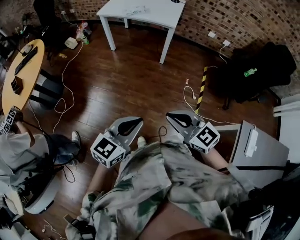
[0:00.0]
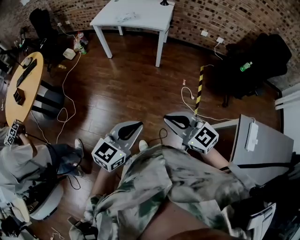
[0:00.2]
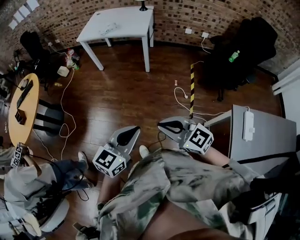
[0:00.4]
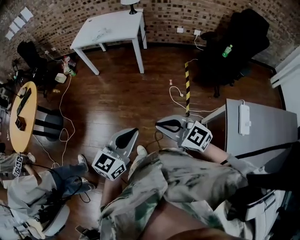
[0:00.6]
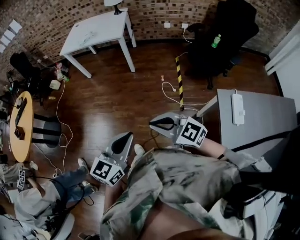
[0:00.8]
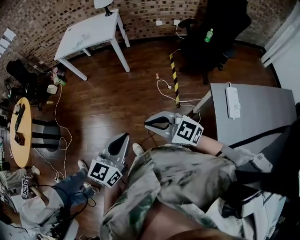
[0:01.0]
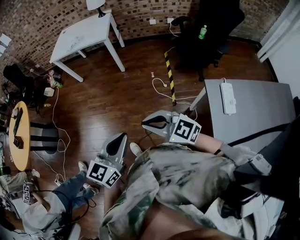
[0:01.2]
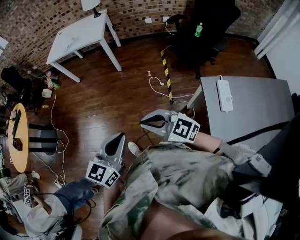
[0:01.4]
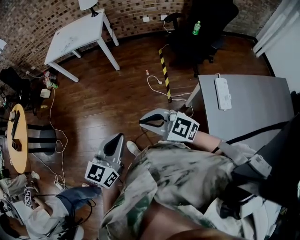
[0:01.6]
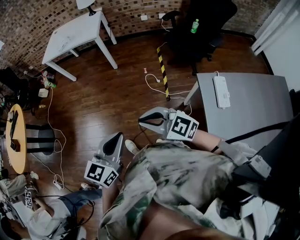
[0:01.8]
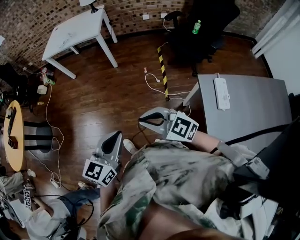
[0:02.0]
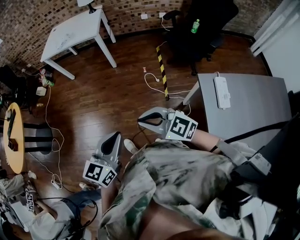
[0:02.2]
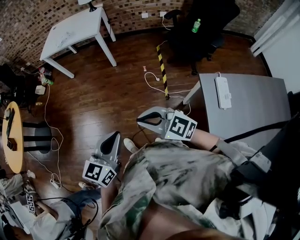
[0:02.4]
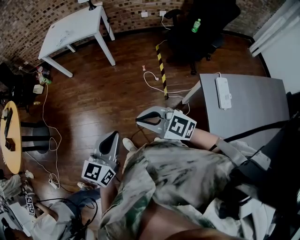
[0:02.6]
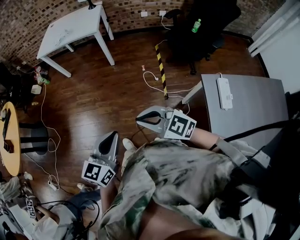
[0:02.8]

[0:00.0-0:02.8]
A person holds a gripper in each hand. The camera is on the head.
0:00.0 to 0:01.4: The two grippers go about 25 cm to the right and backward.
0:01.4 to 0:02.8: The right gripper moves some 5 cm. The left gripper moves to the left, about 5 cm.

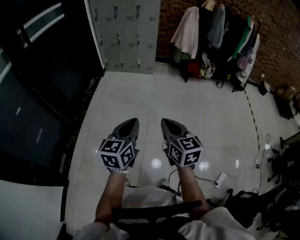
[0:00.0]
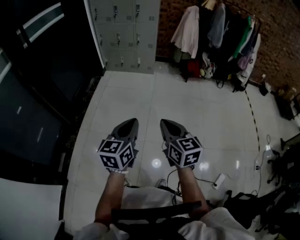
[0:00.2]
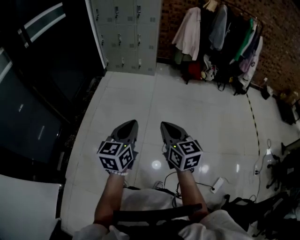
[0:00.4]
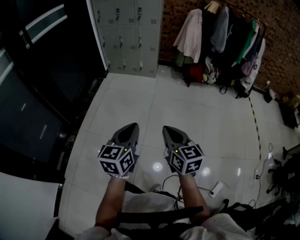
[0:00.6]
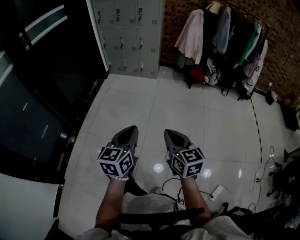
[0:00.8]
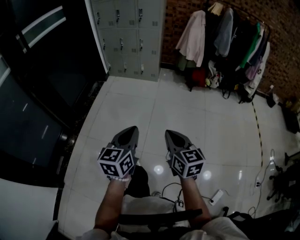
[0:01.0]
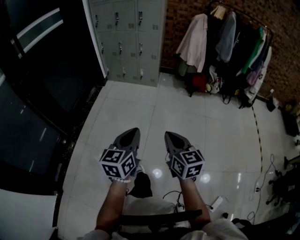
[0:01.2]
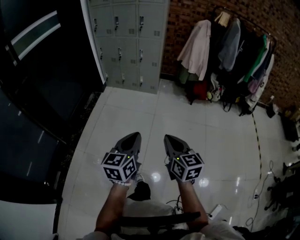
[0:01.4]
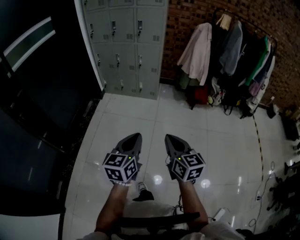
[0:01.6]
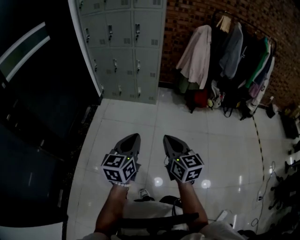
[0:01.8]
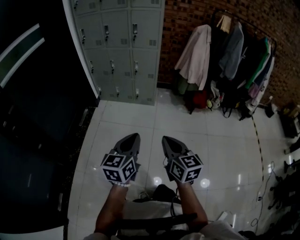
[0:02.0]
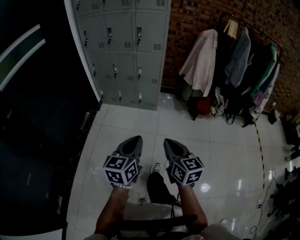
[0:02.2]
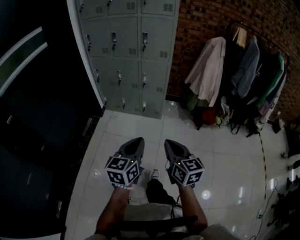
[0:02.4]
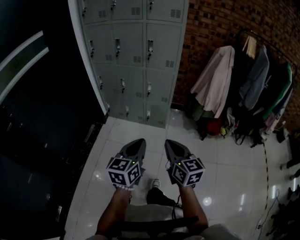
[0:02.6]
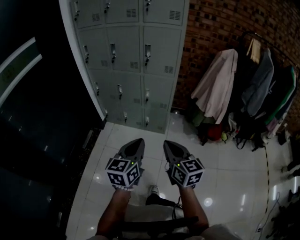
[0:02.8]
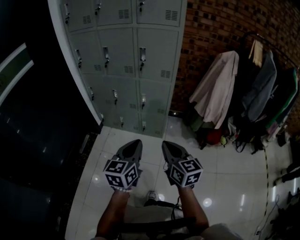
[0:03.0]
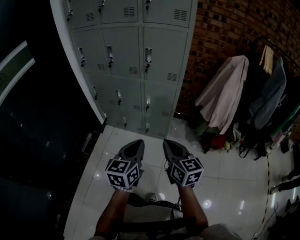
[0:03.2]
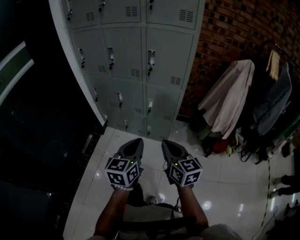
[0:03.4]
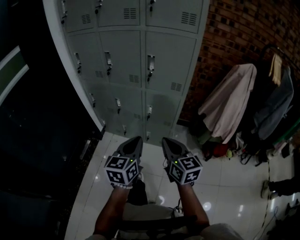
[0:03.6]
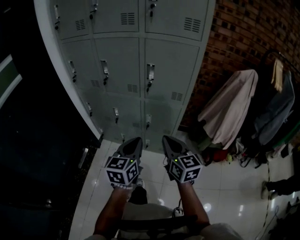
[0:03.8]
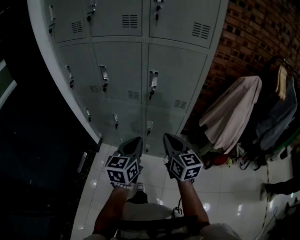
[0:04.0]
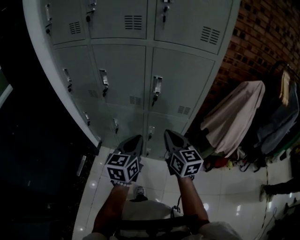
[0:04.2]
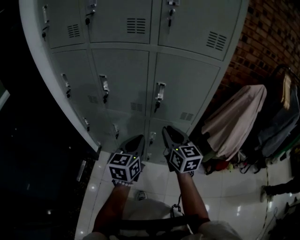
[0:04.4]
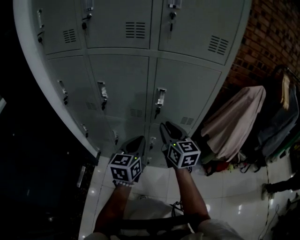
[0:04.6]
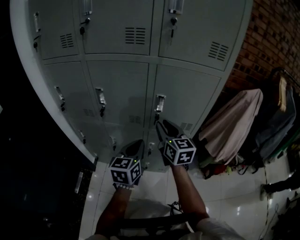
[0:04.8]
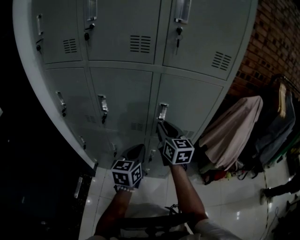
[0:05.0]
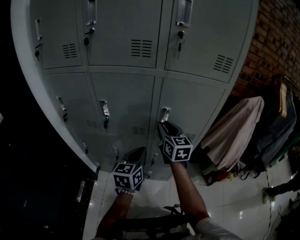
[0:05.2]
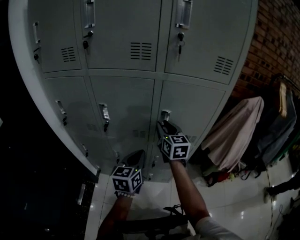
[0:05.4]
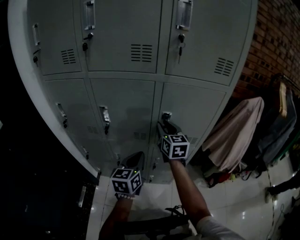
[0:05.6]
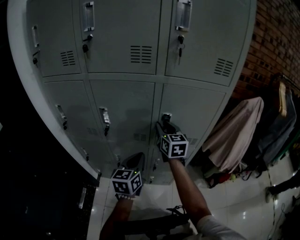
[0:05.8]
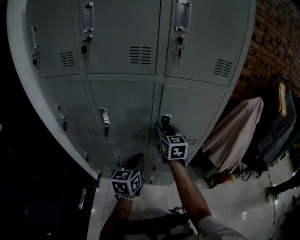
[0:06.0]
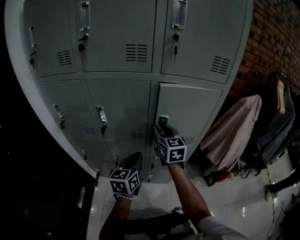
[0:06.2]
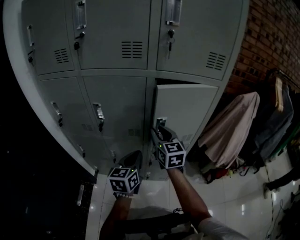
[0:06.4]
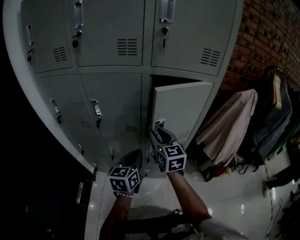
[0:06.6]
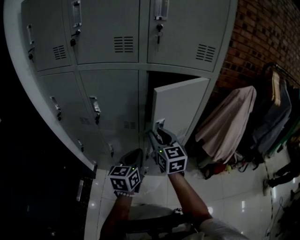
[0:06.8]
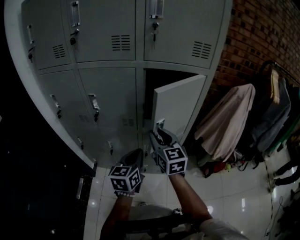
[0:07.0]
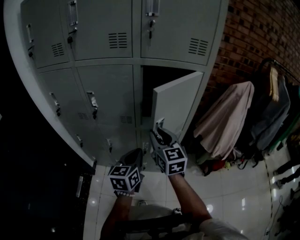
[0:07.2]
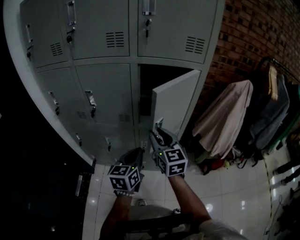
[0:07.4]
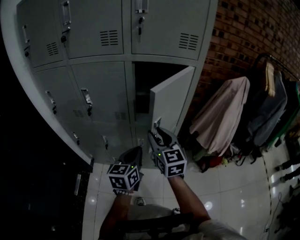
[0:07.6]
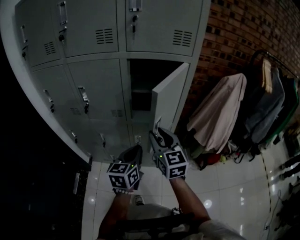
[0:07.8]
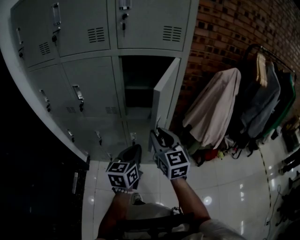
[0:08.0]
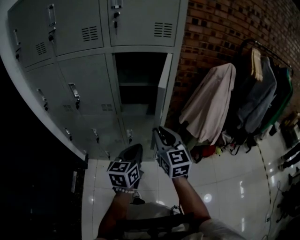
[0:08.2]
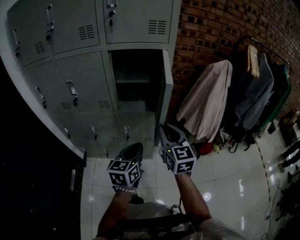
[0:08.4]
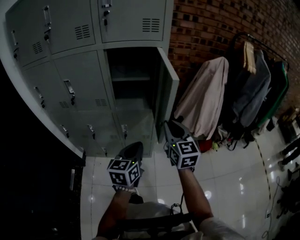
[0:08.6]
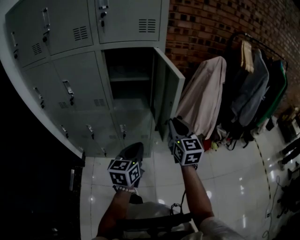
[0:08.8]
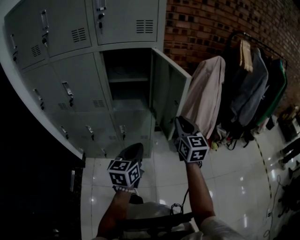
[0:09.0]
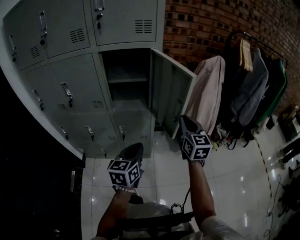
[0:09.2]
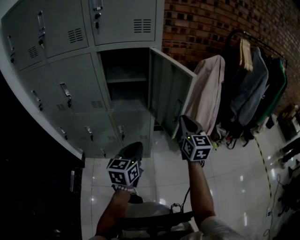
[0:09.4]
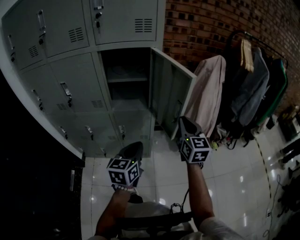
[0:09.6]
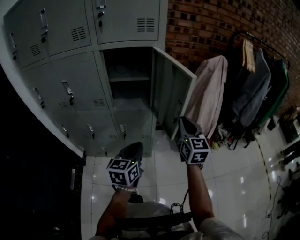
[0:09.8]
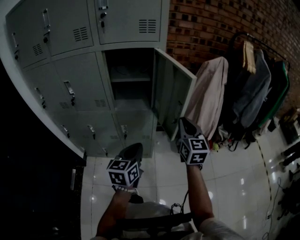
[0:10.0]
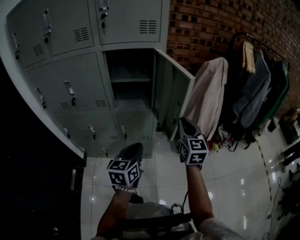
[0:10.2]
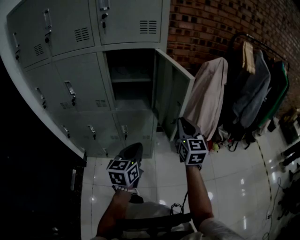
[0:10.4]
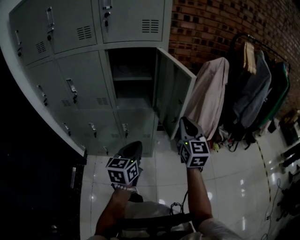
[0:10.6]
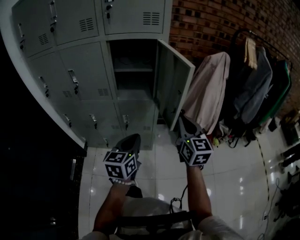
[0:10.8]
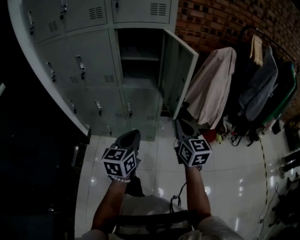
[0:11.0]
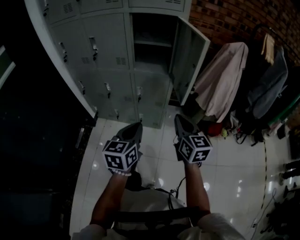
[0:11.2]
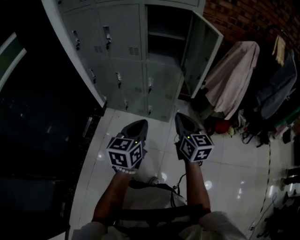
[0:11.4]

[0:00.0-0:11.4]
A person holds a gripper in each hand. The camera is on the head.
0:00.0 to 0:01.4: The two grippers go approximately 25 cm forward.
0:01.4 to 0:02.8: The two grippers travel together, forward, some 50 cm.
0:02.8 to 0:04.2: Both grippers are carried forward, about 40 cm.
0:04.2 to 0:05.6: The right gripper moves forward, approximately 20 cm, and opens; the left gripper heads forward and to the left, covering roughly 15 cm.
0:05.6 to 0:07.2: The right gripper travels backward by approximately 15 cm. The left gripper is displaced backward and to the right by approximately 10 cm.
0:07.2 to 0:08.6: The grippers both shift to the right and backward by some 20 cm.
0:08.6 to 0:10.0: The right gripper goes roughly 10 cm to the right.
0:10.0 to 0:11.4: The left gripper goes roughly 20 cm backward, while the right gripper is displaced backward and to the left by approximately 20 cm, and changes its angle by some 30 degrees.

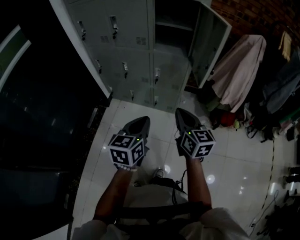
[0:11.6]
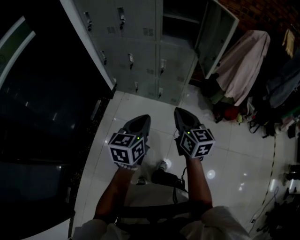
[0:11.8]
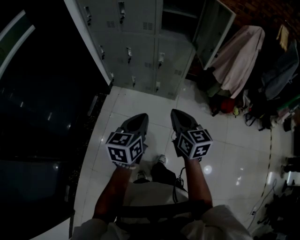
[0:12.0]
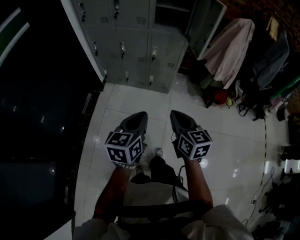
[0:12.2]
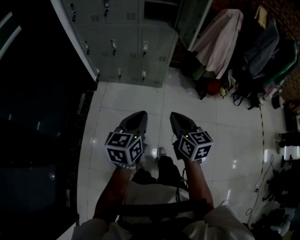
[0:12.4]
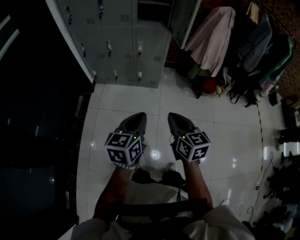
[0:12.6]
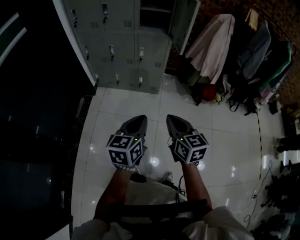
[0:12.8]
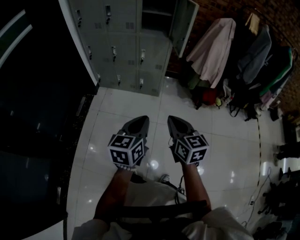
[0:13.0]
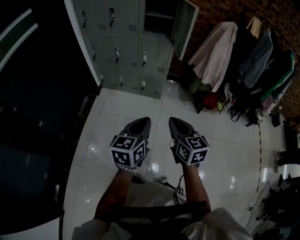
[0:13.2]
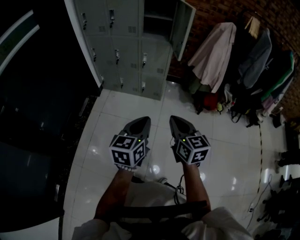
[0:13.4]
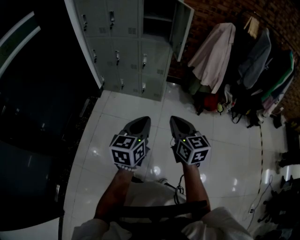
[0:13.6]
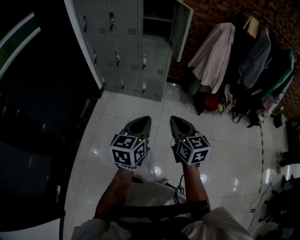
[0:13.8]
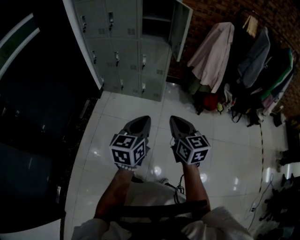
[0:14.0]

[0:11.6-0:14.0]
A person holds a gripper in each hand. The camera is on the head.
0:11.6 to 0:12.8: Both grippers travel together backward, approximately 25 cm.
0:12.8 to 0:14.0: The two grippers go about 5 cm to the right.

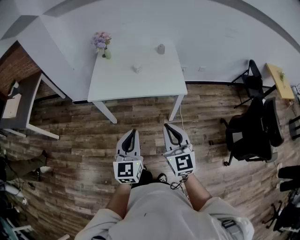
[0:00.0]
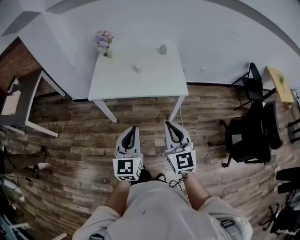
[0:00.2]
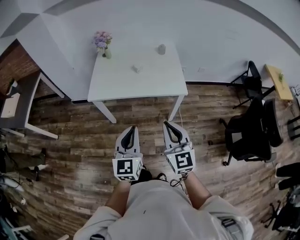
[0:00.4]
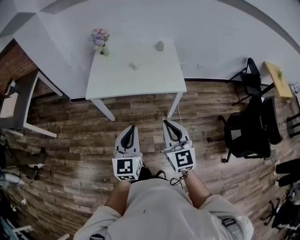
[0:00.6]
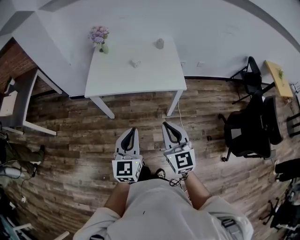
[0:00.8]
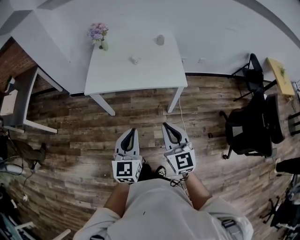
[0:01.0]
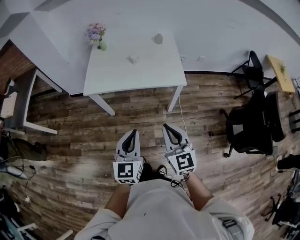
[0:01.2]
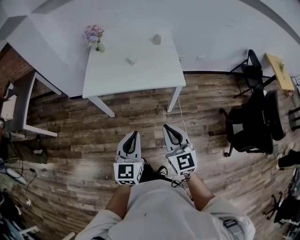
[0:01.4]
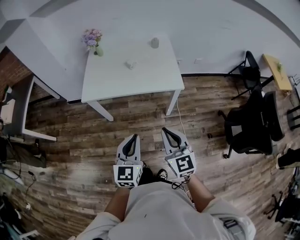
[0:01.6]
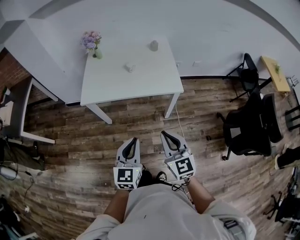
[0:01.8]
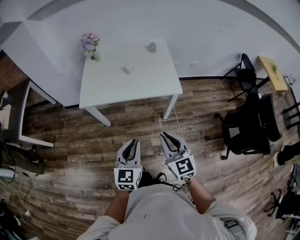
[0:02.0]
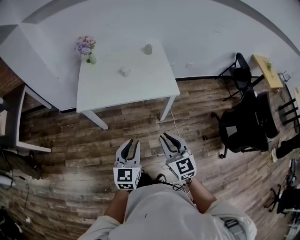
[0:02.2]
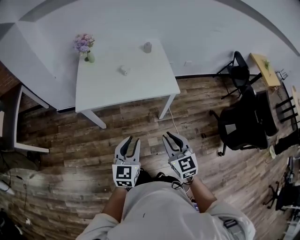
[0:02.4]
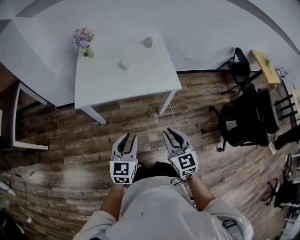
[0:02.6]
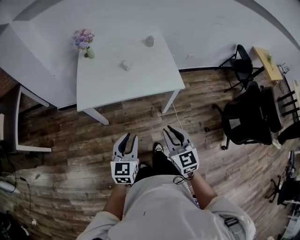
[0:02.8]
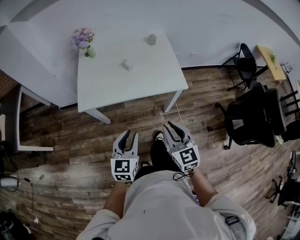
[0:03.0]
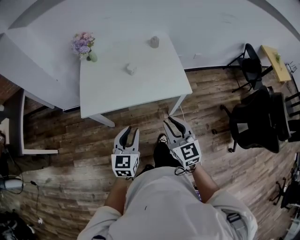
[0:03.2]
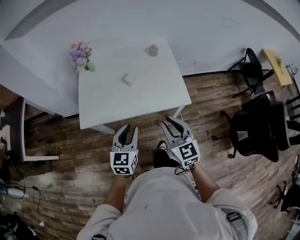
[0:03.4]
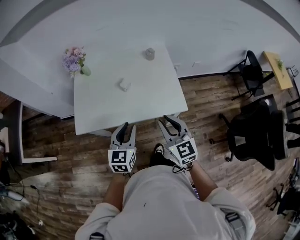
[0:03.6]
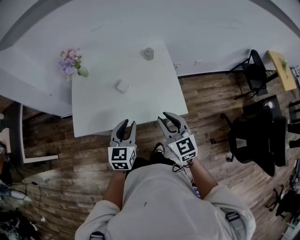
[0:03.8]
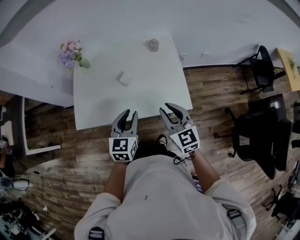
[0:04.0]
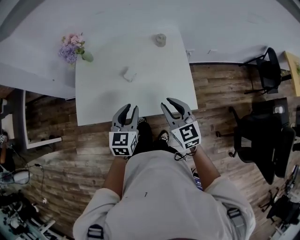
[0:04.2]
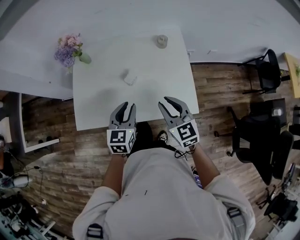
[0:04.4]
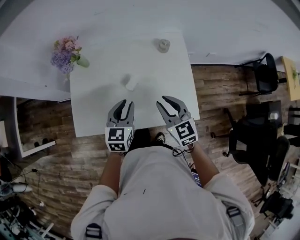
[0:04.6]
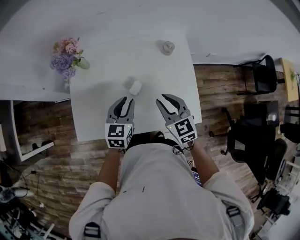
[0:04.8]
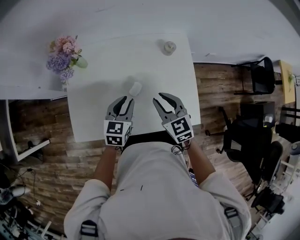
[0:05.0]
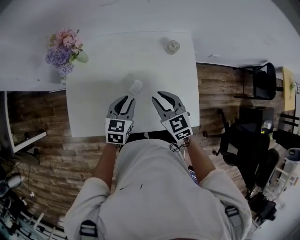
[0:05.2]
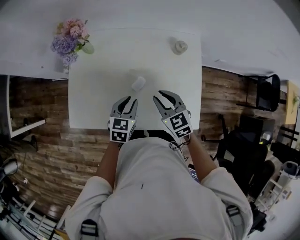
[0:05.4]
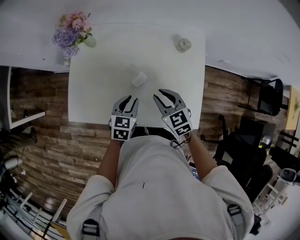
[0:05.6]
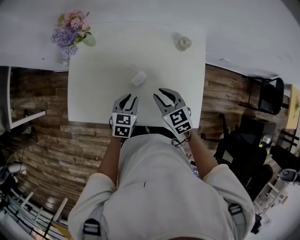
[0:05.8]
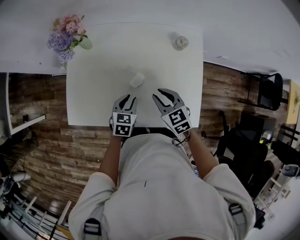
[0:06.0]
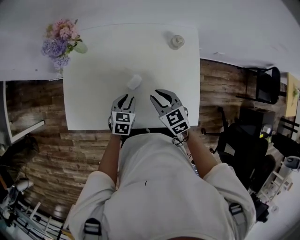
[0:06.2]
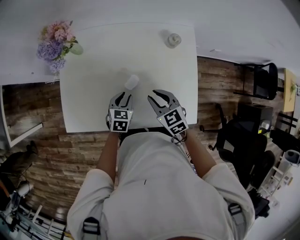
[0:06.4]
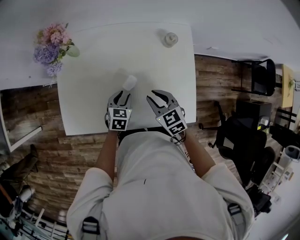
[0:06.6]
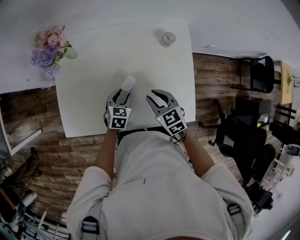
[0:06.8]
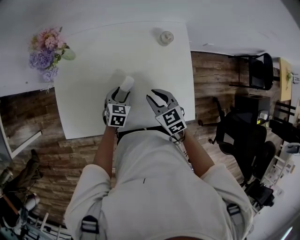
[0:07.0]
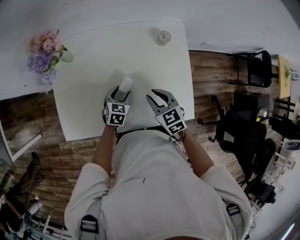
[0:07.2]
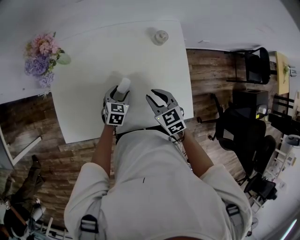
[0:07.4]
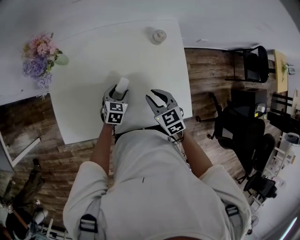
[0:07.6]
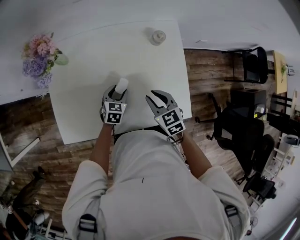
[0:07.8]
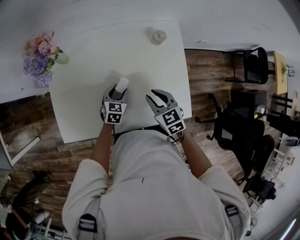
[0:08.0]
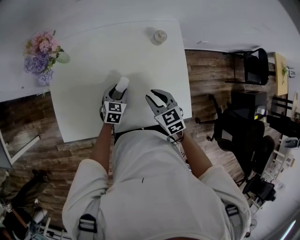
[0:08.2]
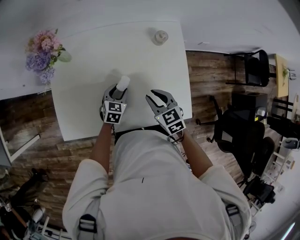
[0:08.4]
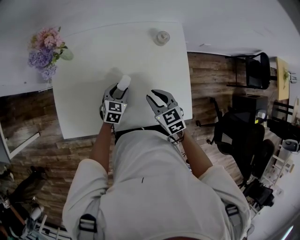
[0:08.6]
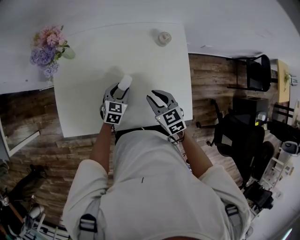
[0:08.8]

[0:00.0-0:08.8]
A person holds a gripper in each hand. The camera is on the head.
0:00.0 to 0:01.4: The grippers move only a little.
0:01.4 to 0:03.0: The left gripper shifts some 15 cm forward, to the left and downward, and opens its fingers. The right gripper is displaced forward and to the left by approximately 10 cm.
0:03.0 to 0:04.4: The two grippers go about 35 cm forward.
0:04.4 to 0:05.8: The right gripper moves forward, downward and to the left, approximately 15 cm, and turns by approximately 20 degrees; the left gripper is displaced downward and forward by approximately 15 cm.
0:05.8 to 0:07.4: The left gripper is displaced downward and forward by some 10 cm, and opens.
0:07.4 to 0:08.8: The grippers stay close to where they were, moving slightly.
